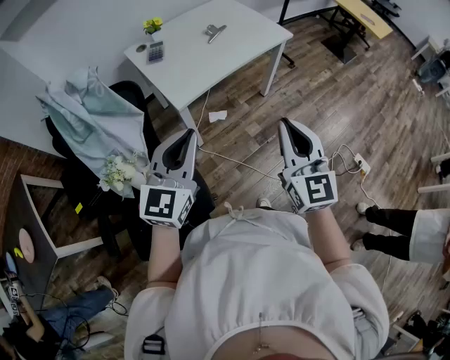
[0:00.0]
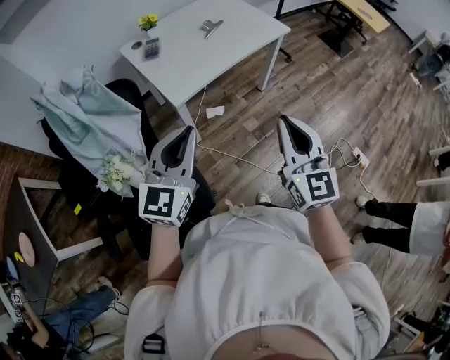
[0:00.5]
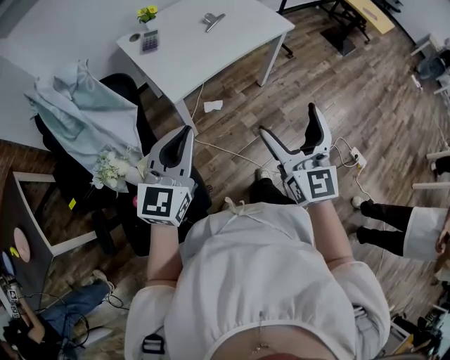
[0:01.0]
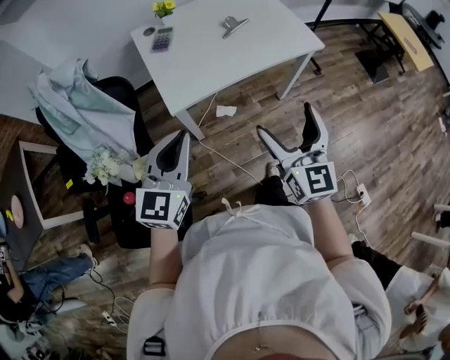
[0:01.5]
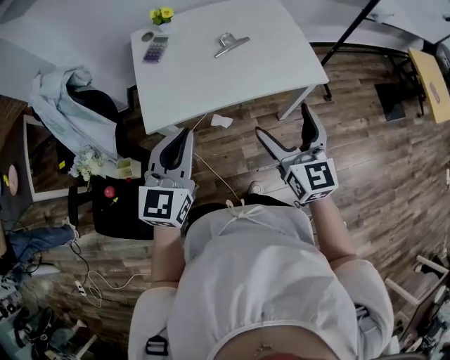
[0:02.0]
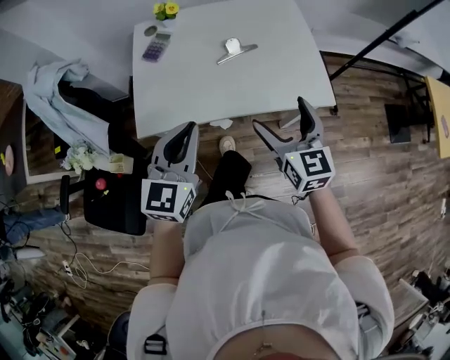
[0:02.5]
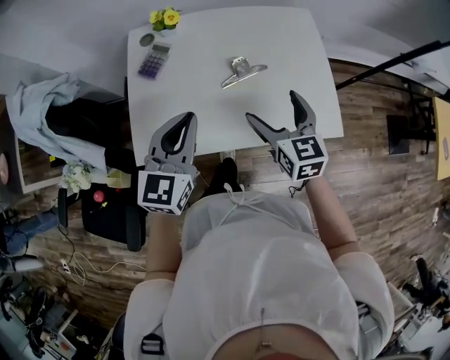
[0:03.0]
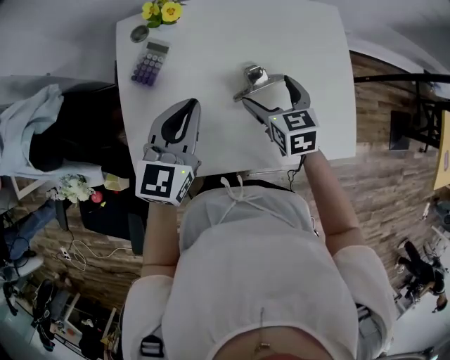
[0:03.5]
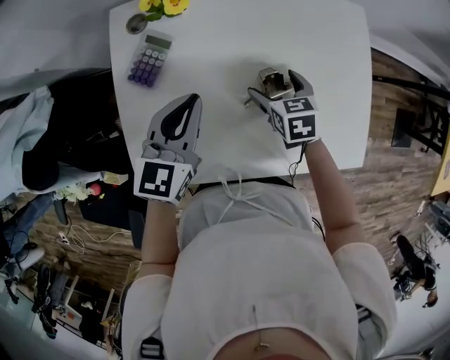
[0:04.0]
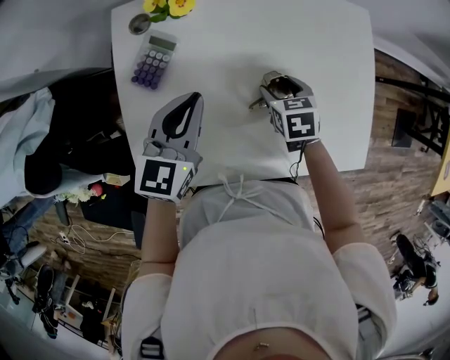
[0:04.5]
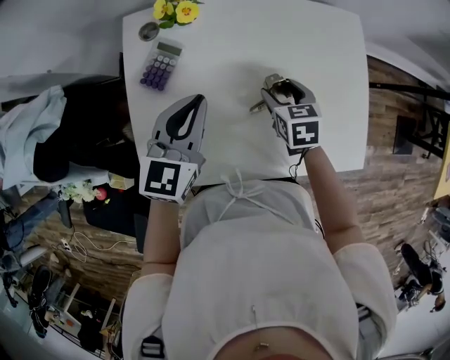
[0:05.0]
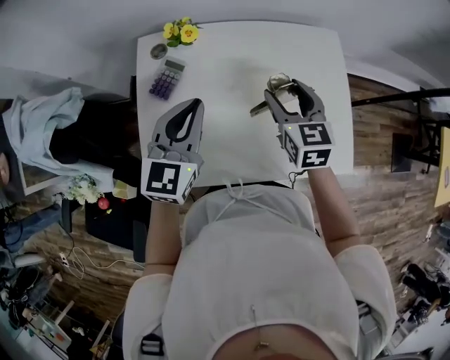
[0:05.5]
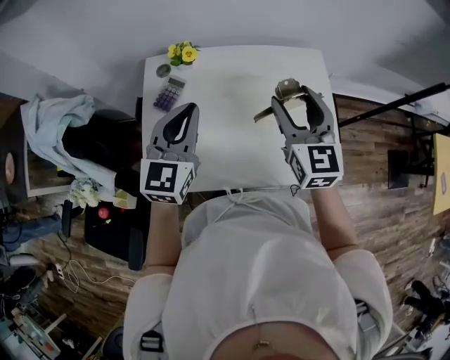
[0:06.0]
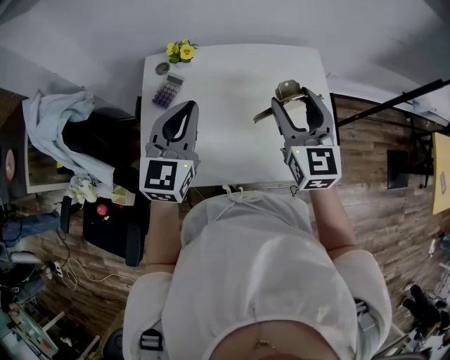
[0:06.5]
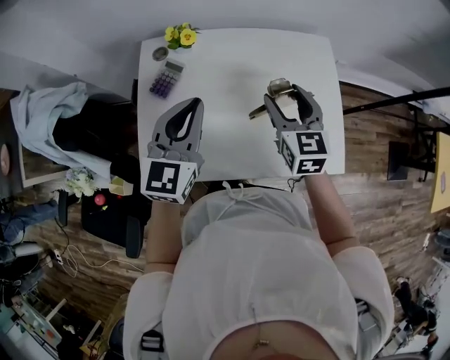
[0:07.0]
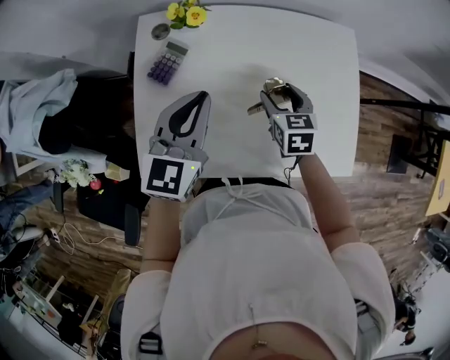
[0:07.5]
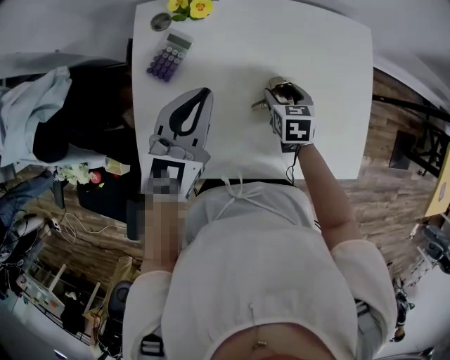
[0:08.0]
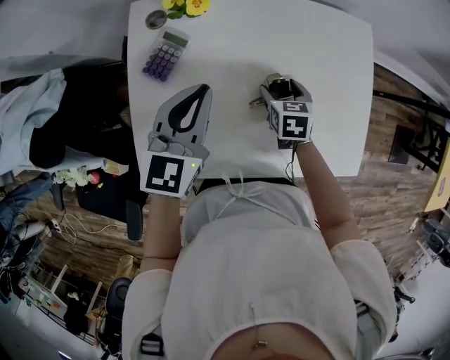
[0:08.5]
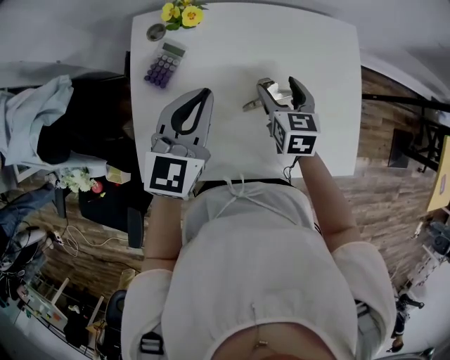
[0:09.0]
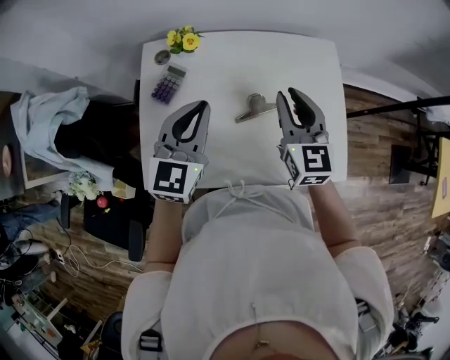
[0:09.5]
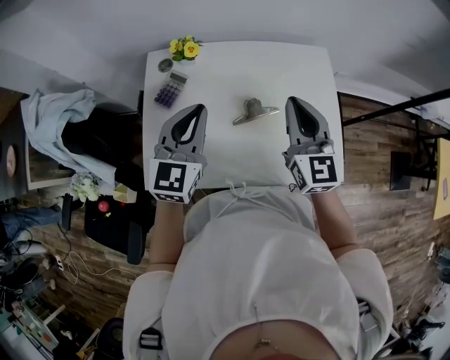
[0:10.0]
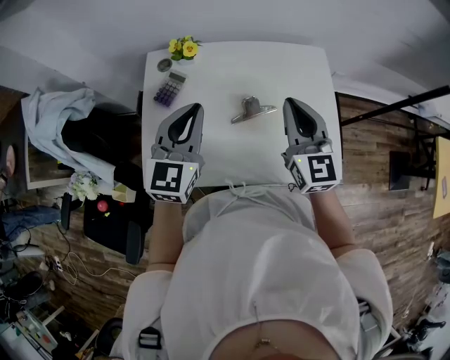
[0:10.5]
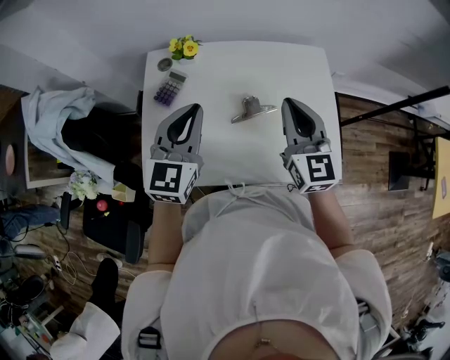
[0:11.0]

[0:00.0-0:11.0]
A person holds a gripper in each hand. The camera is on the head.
0:00.0 to 0:02.0: The left gripper shifts by roughly 30 cm, and rotates some 30 degrees, while the right gripper moves some 40 cm, turns by approximately 30 degrees, and opens.
0:02.0 to 0:03.5: The right gripper heads forward and downward, covering about 50 cm, and tips its fingers downward by approximately 30 degrees; the left gripper travels forward by about 40 cm.
0:03.5 to 0:05.5: The right gripper moves upward, some 10 cm, and closes, while the left gripper travels upward by some 5 cm.
0:05.5 to 0:07.5: The left gripper goes upward and returns, about 5 cm each way, while the right gripper heads downward, covering about 10 cm.
0:07.5 to 0:09.0: The right gripper moves some 10 cm downward and comes back.
0:09.0 to 0:11.0: The left gripper heads upward and backward, covering some 10 cm. The right gripper travels upward and backward by some 25 cm, tilts its fingers about 30 degrees upward, and closes.

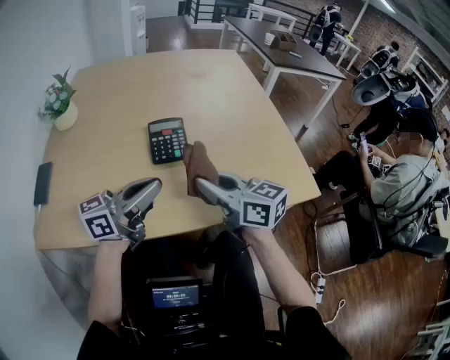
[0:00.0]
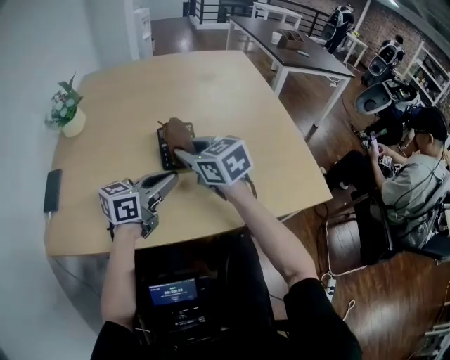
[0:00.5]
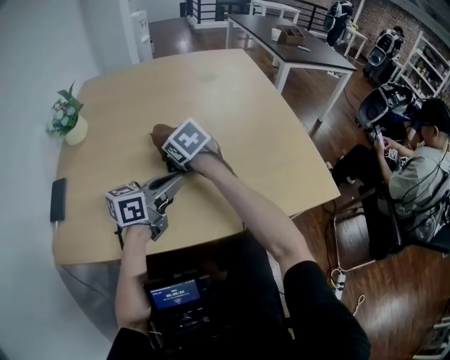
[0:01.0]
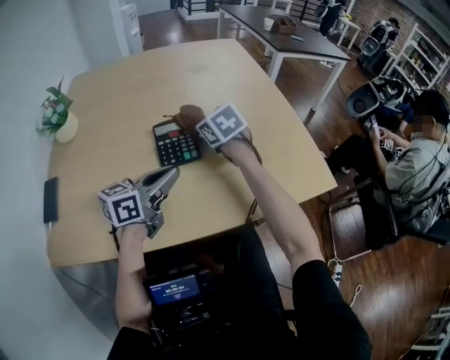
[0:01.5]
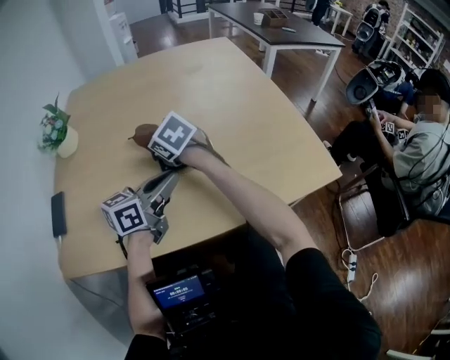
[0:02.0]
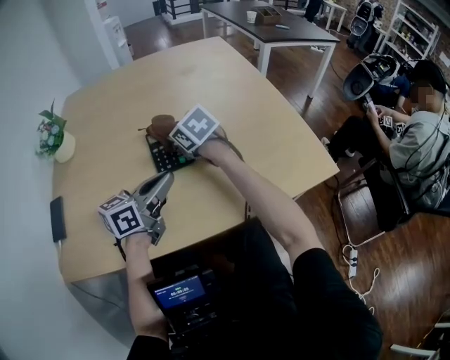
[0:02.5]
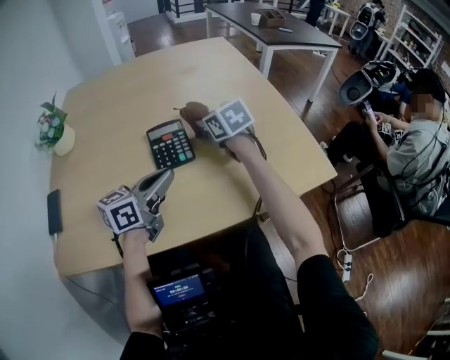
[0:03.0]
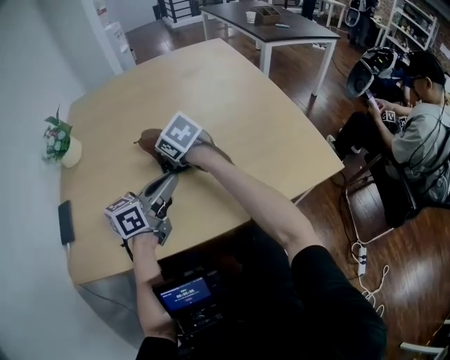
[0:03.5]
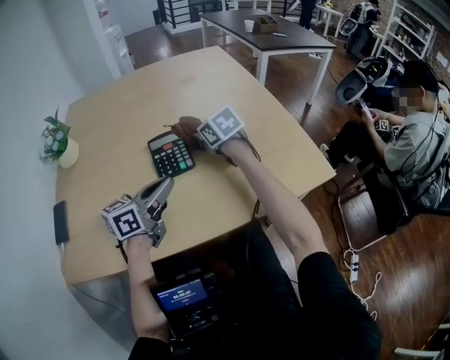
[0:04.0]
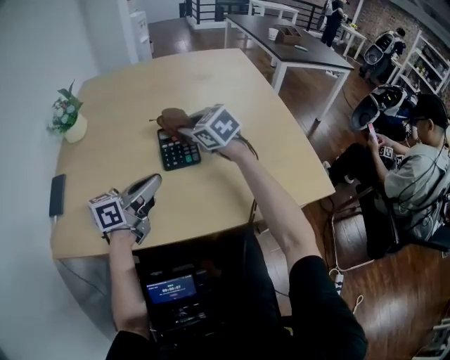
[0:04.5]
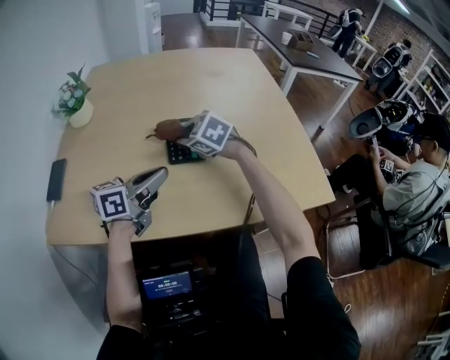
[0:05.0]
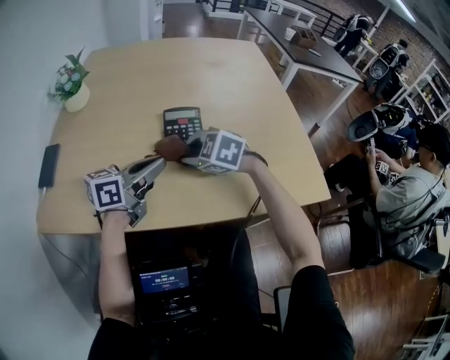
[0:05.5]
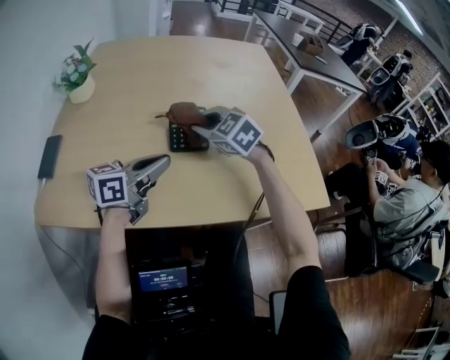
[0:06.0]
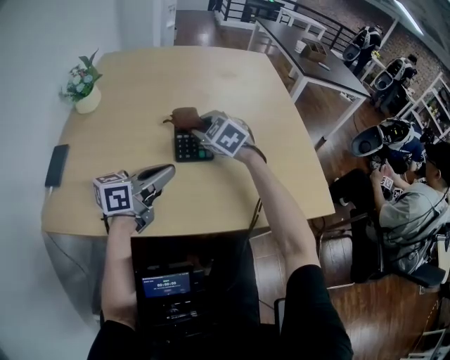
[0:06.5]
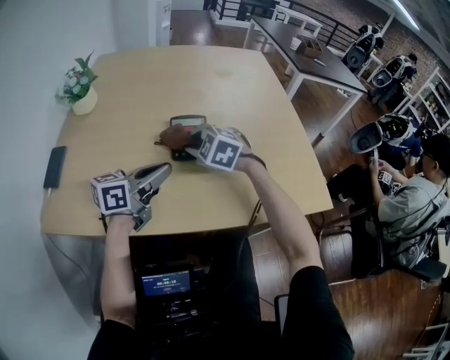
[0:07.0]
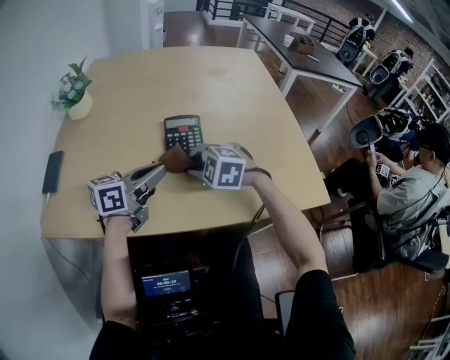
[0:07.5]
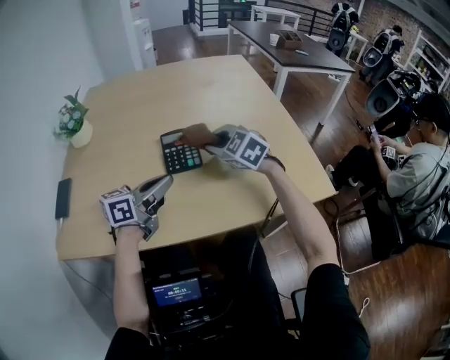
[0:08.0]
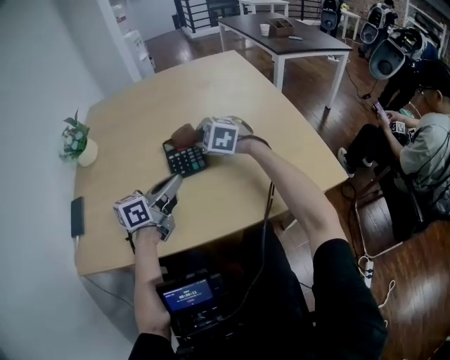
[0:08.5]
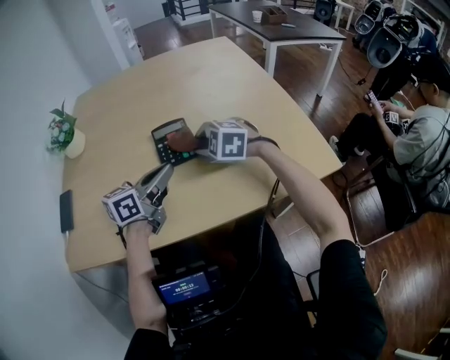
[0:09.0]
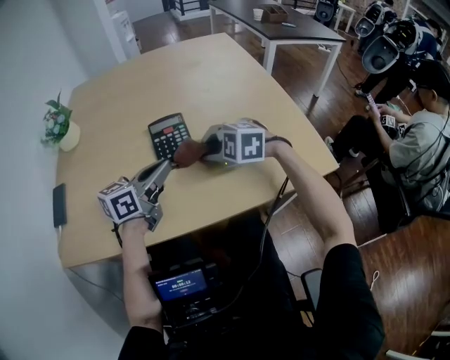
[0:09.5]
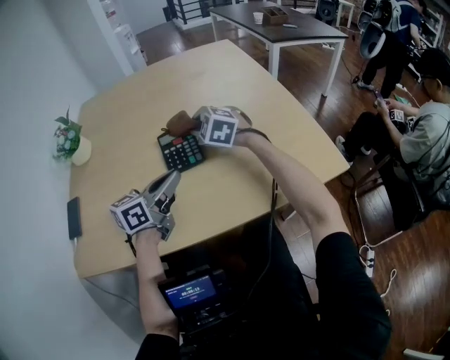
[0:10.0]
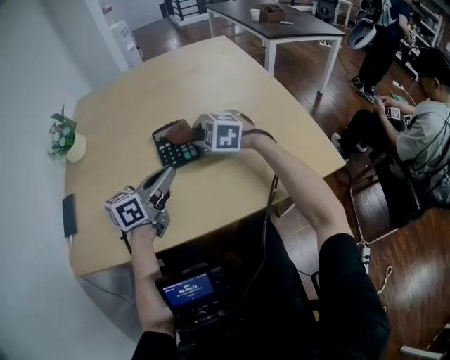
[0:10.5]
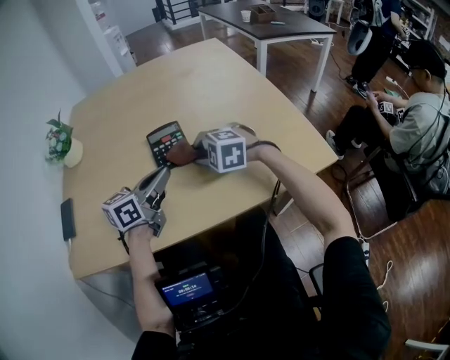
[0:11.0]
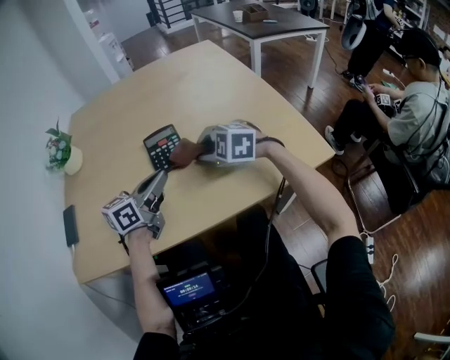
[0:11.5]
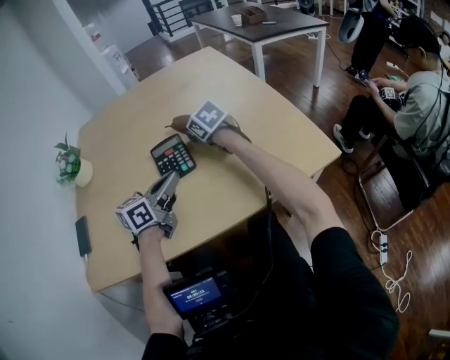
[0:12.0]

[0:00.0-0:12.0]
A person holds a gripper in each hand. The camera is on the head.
0:00.0 to 0:02.0: The left gripper goes approximately 5 cm forward; the right gripper shifts roughly 25 cm forward and to the left, and points its fingers about 30 degrees further downward.
0:02.0 to 0:04.0: The right gripper swings left and right, some 15 cm each way, with 2 reversals.
0:04.0 to 0:06.0: The right gripper moves to the left and backward, about 10 cm, and turns by approximately 40 degrees.
0:06.0 to 0:08.0: The right gripper travels to the right by roughly 5 cm, and travels backward and back again, some 10 cm each way.
0:08.0 to 0:10.0: The right gripper goes forward and backward, some 15 cm each way, reversing 2 times.
0:10.0 to 0:12.0: The right gripper moves roughly 10 cm backward and comes back, and rolls clockwise, seen from behind, by roughly 40 degrees.

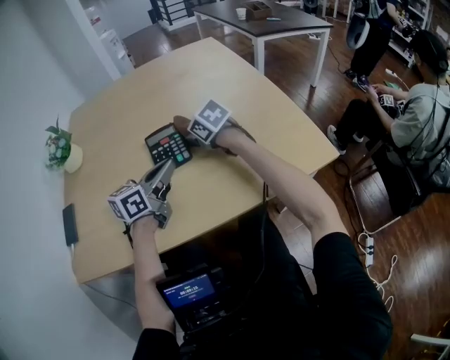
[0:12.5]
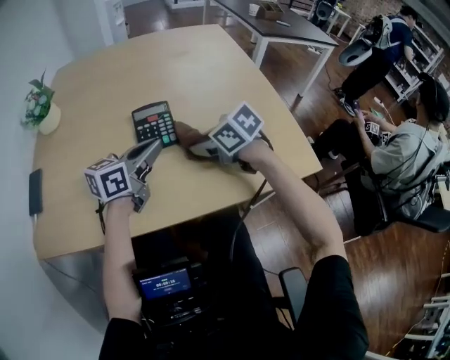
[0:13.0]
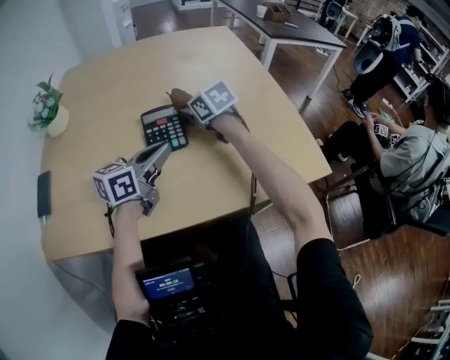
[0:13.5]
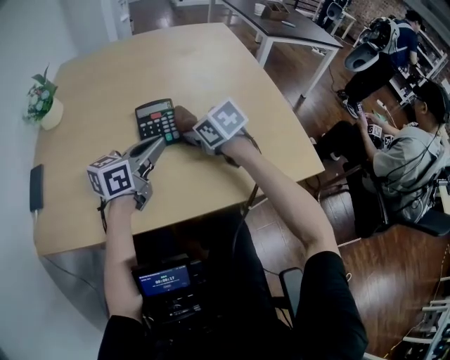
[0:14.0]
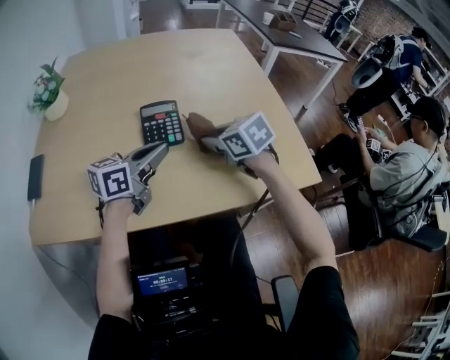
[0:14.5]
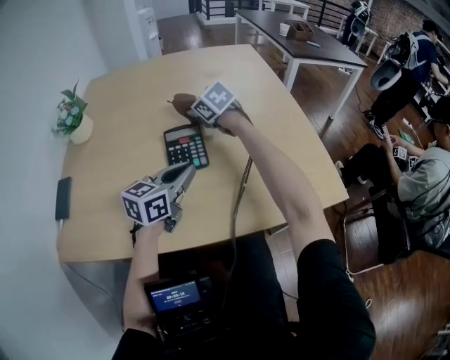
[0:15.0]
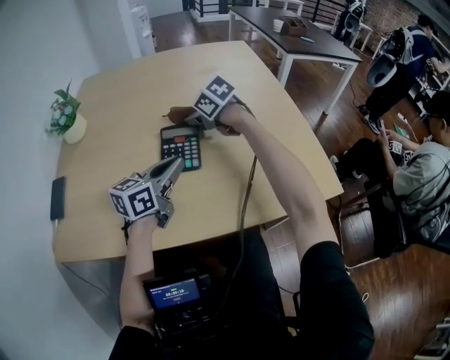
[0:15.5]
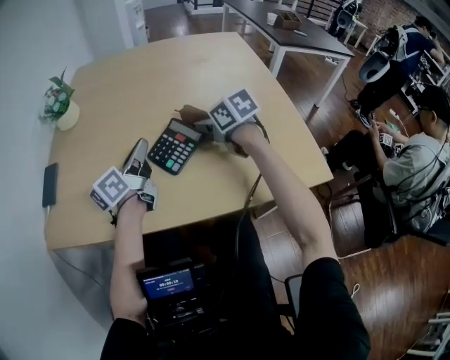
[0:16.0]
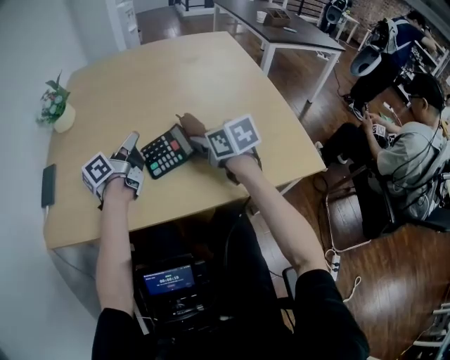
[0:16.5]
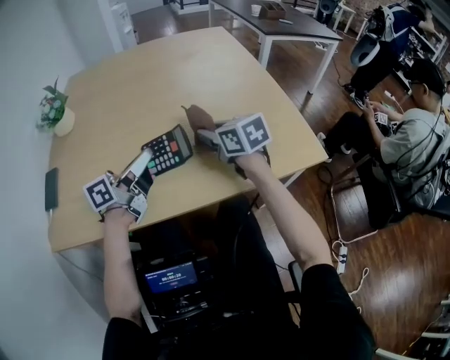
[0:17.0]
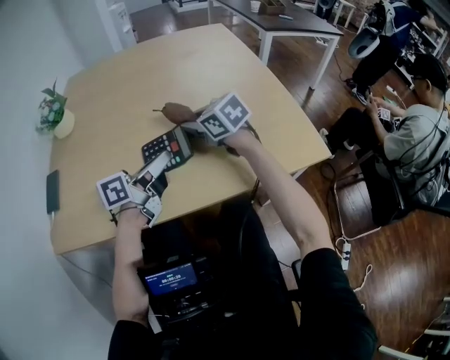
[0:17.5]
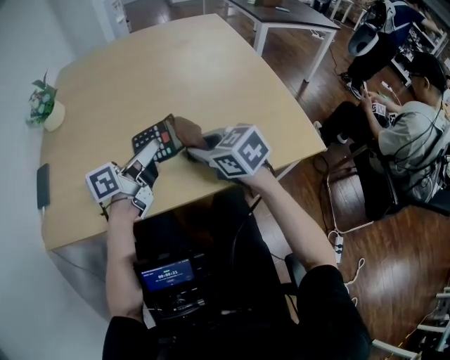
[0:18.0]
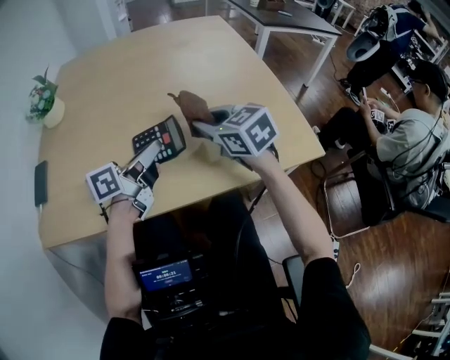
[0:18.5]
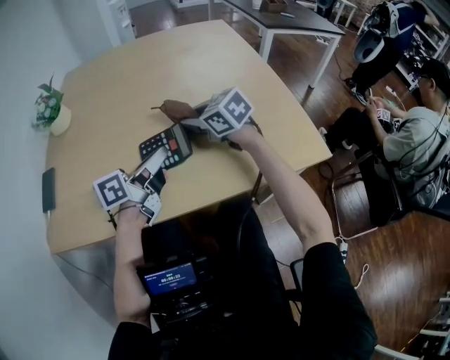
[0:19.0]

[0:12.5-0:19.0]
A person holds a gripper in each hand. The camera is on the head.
0:12.5 to 0:14.5: The right gripper goes forward and backward, approximately 15 cm each way, reversing 2 times.
0:14.5 to 0:17.0: The left gripper changes its angle by about 20 degrees. The right gripper goes forward and returns, approximately 20 cm each way.
0:17.0 to 0:19.0: The right gripper travels backward and back again, about 5 cm each way, and rotates roughly 20 degrees.
